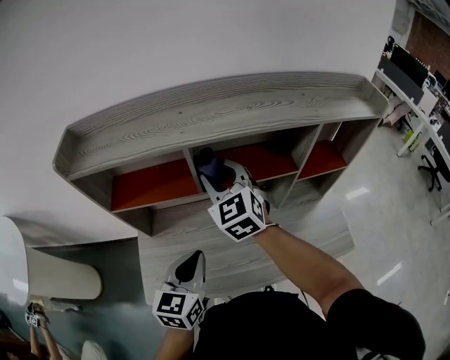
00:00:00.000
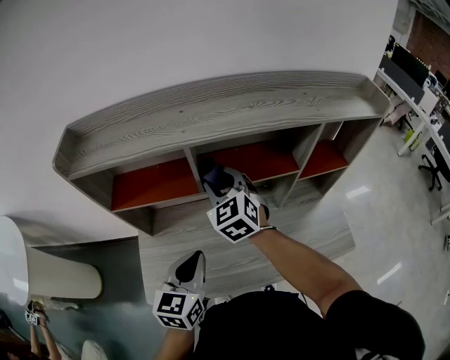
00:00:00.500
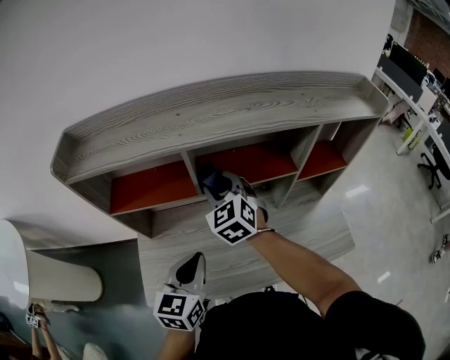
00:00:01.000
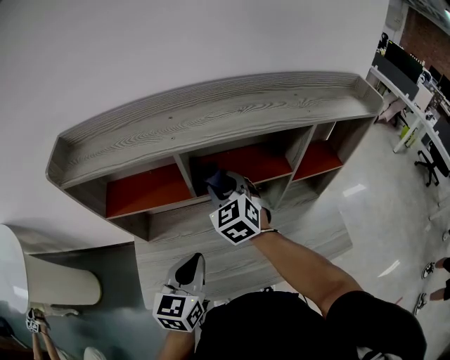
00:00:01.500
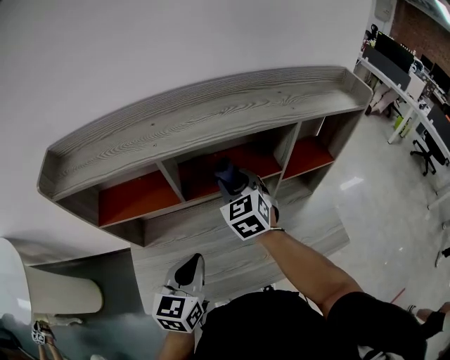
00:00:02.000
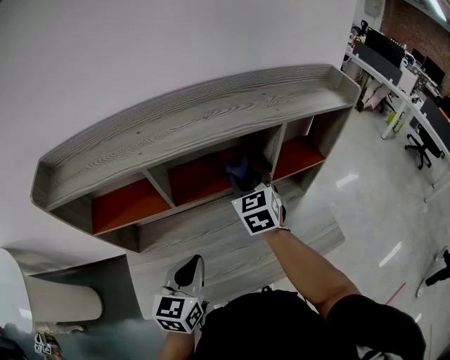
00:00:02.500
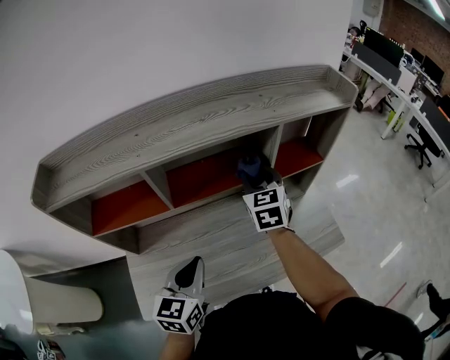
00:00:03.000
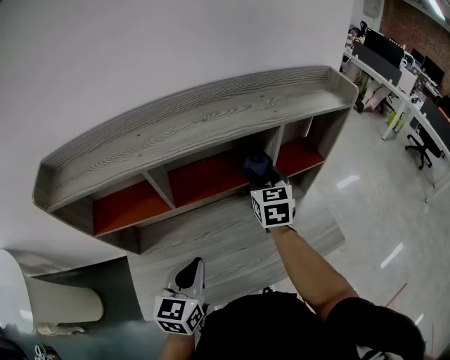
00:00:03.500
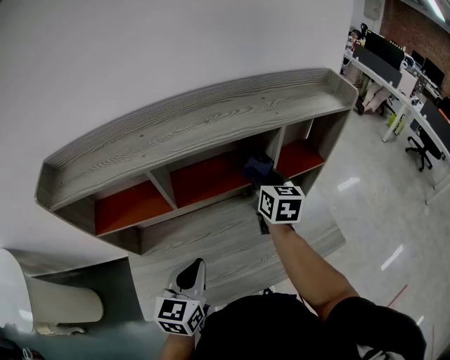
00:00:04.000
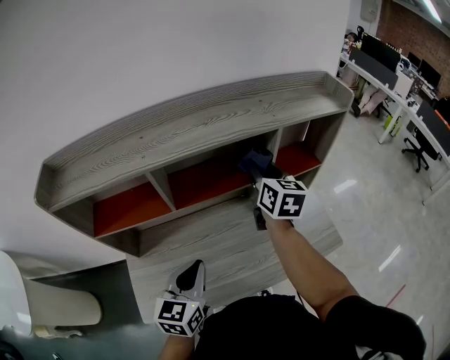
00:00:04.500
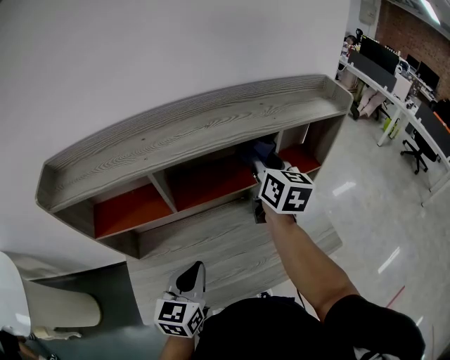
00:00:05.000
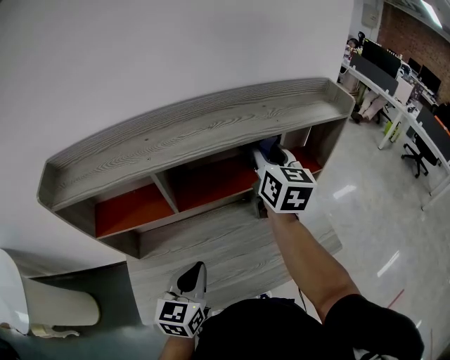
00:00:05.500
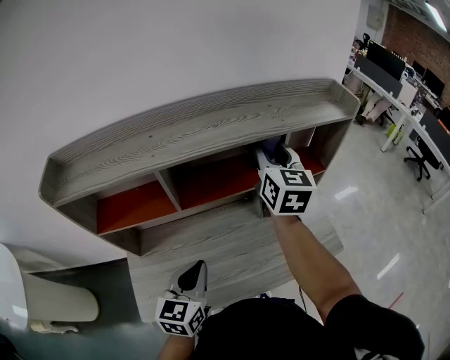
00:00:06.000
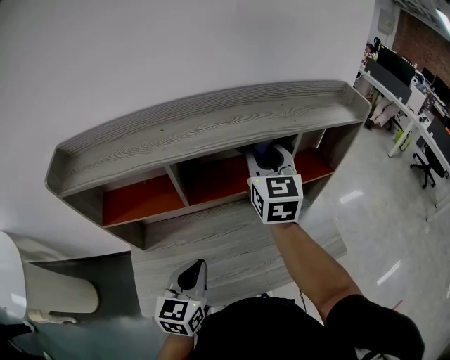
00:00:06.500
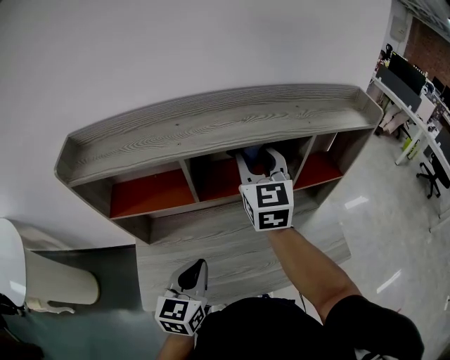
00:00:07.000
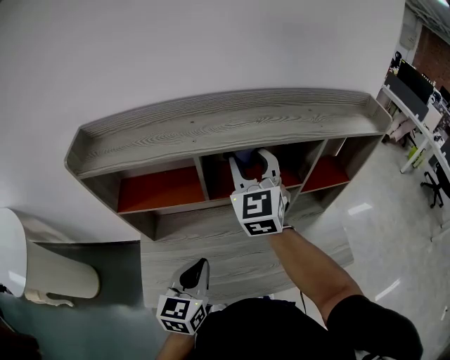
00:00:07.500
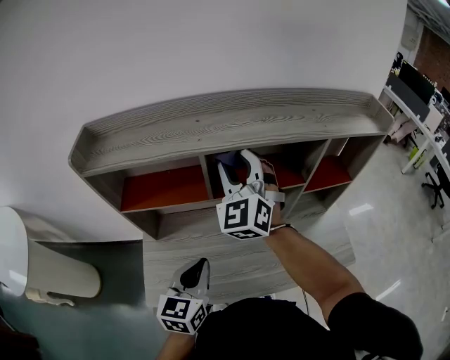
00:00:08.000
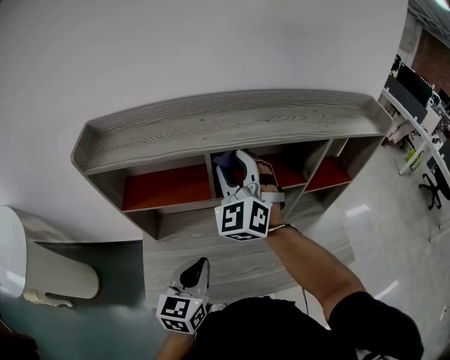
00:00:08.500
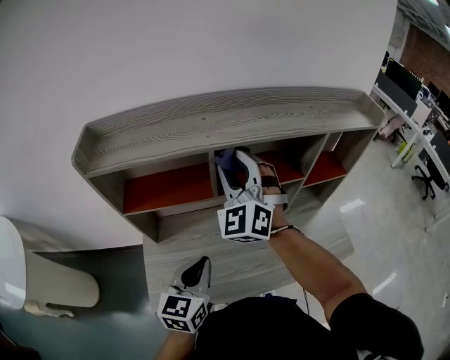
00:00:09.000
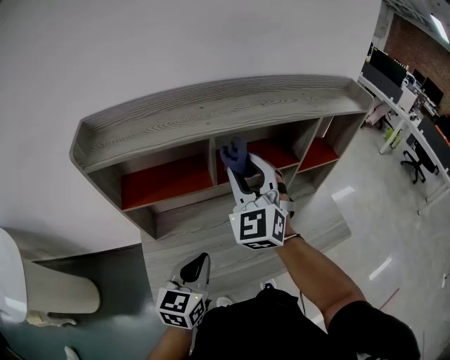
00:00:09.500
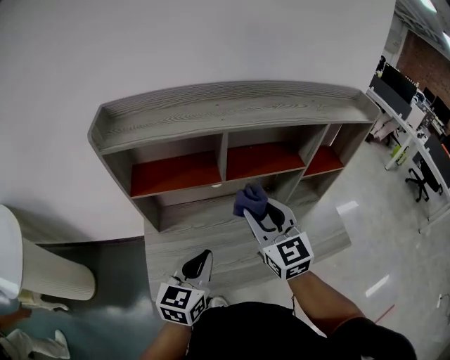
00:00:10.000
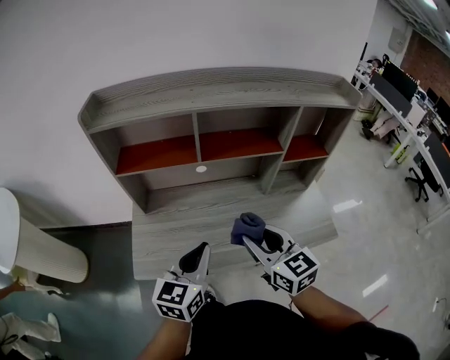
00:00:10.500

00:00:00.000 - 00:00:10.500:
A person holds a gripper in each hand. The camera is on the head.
00:00:00.000 - 00:00:02.000: The right gripper goes roughly 10 cm to the right and downward.
00:00:02.000 - 00:00:04.000: The right gripper heads to the right, covering roughly 15 cm, and rotates some 40 degrees.
00:00:04.000 - 00:00:06.500: The right gripper moves upward and to the left, about 15 cm, and changes its angle by some 20 degrees.
00:00:06.500 - 00:00:08.500: The left gripper moves to the left, approximately 5 cm, while the right gripper shifts about 15 cm to the left, and twists some 40 degrees counterclockwise, seen from behind.
00:00:08.500 - 00:00:10.500: The left gripper is displaced backward and to the right by approximately 10 cm. The right gripper moves backward, downward and to the right, some 30 cm, and twists about 50 degrees clockwise, seen from behind.

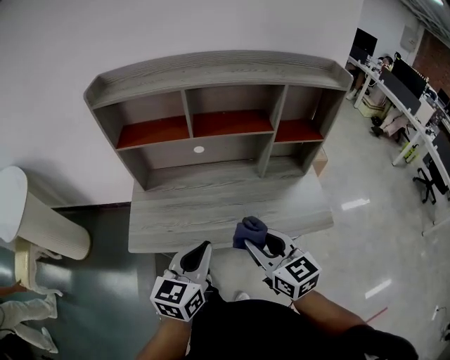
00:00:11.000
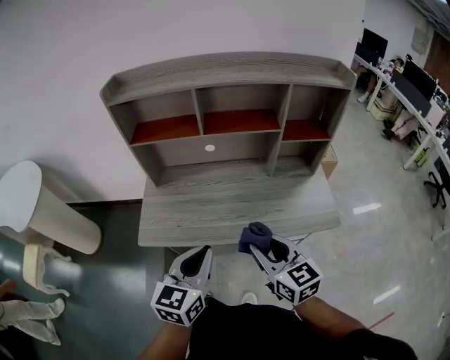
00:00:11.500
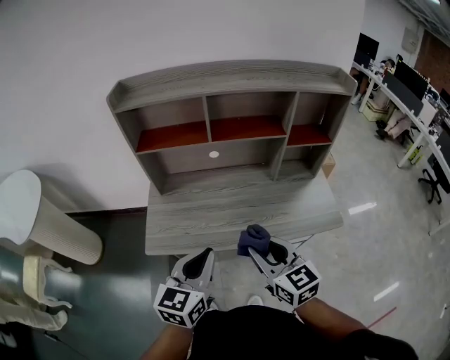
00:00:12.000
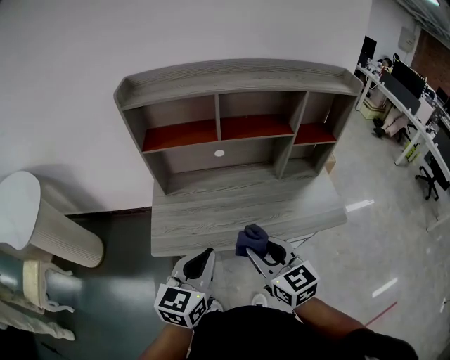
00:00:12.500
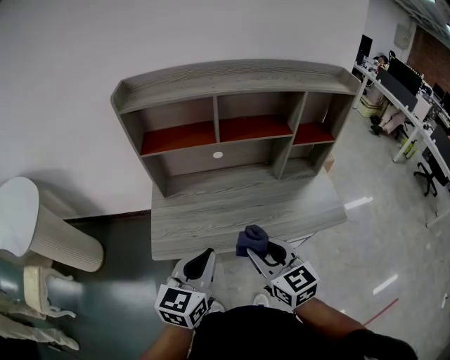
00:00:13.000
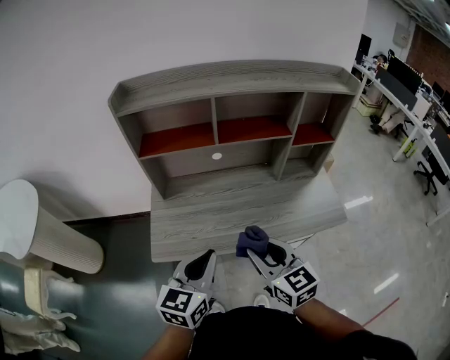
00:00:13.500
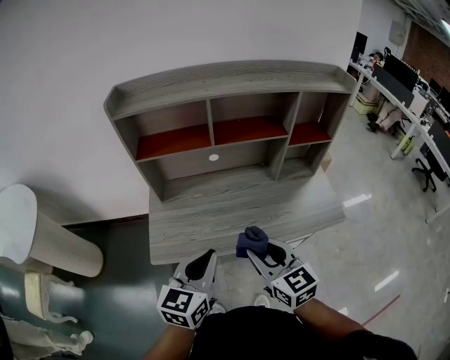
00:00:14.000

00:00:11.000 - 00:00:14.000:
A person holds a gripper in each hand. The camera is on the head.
00:00:11.000 - 00:00:12.500: The two grippers go about 10 cm to the left.
00:00:12.500 - 00:00:14.000: The grippers make only small movements.

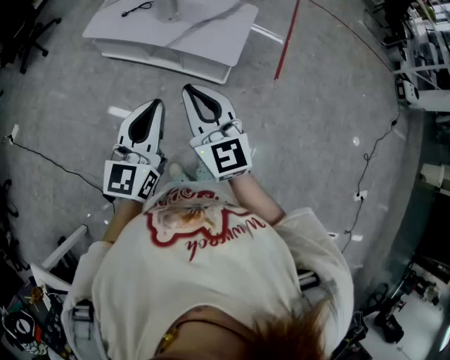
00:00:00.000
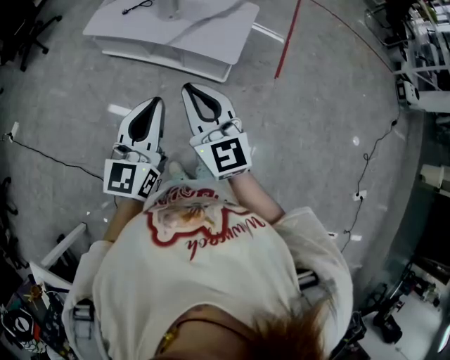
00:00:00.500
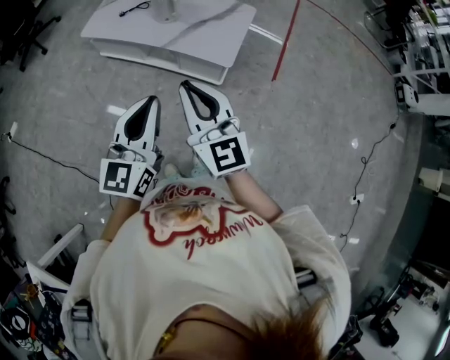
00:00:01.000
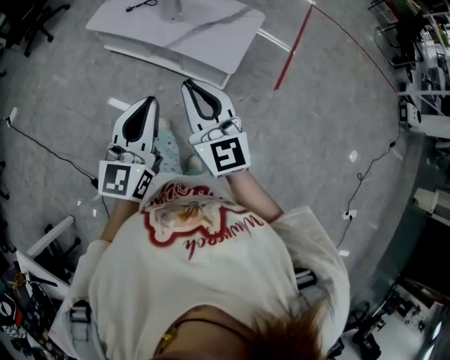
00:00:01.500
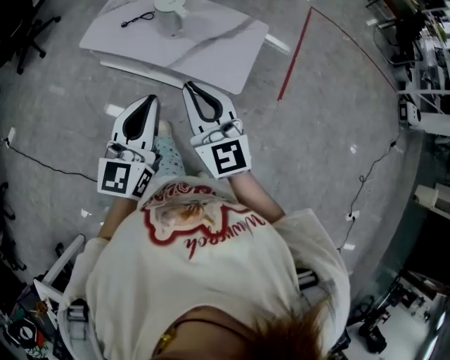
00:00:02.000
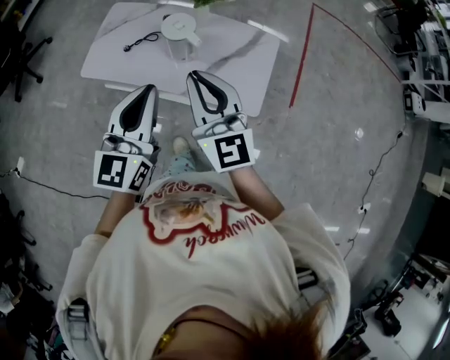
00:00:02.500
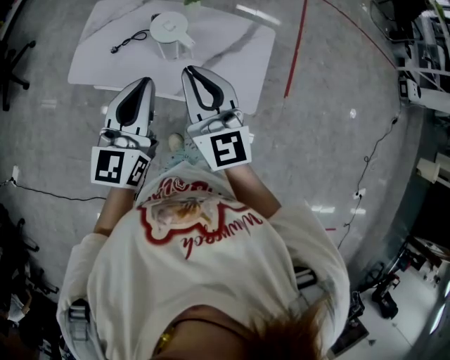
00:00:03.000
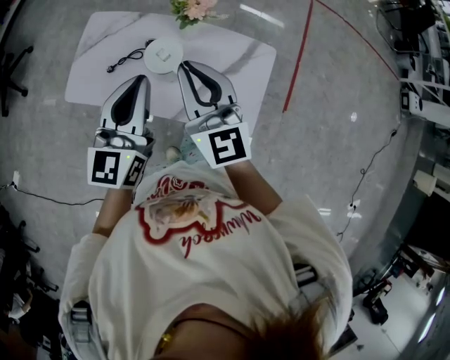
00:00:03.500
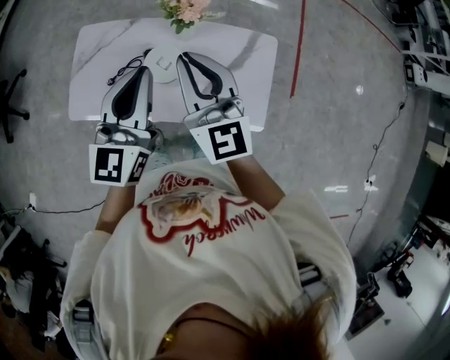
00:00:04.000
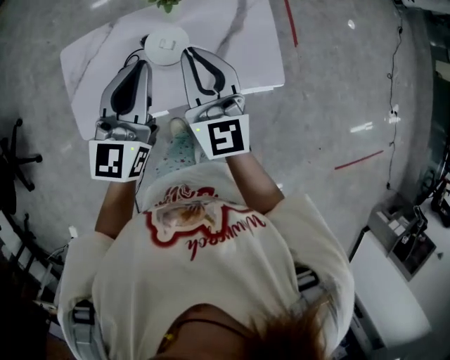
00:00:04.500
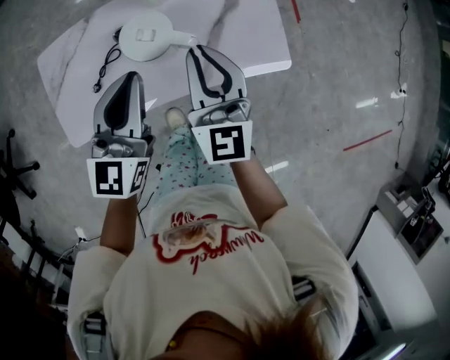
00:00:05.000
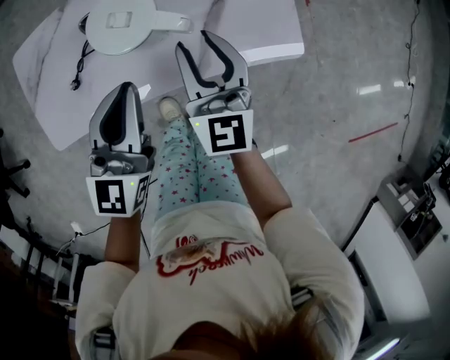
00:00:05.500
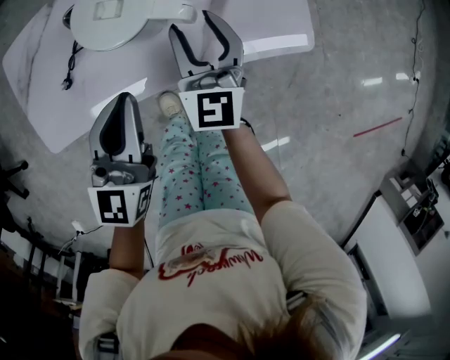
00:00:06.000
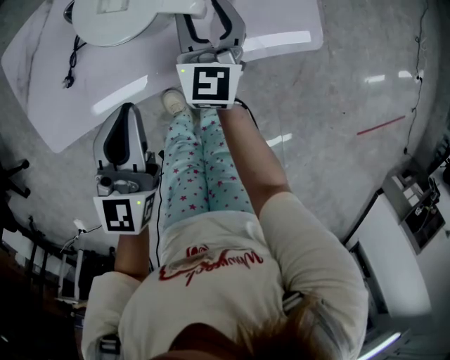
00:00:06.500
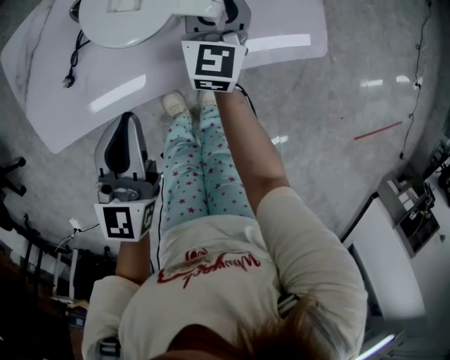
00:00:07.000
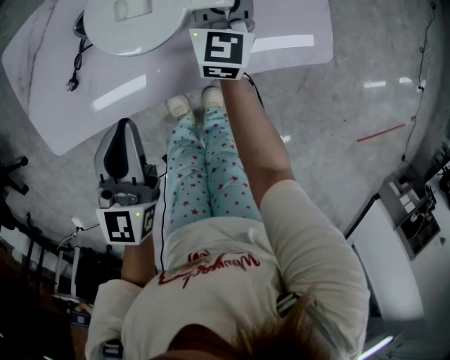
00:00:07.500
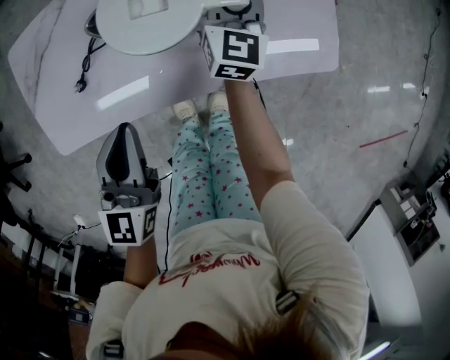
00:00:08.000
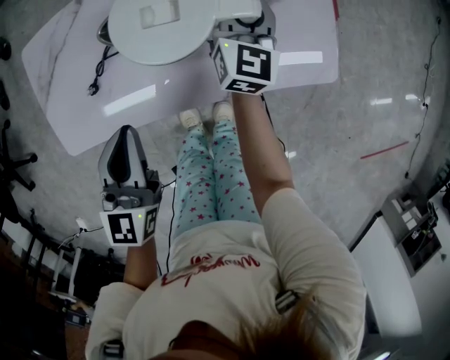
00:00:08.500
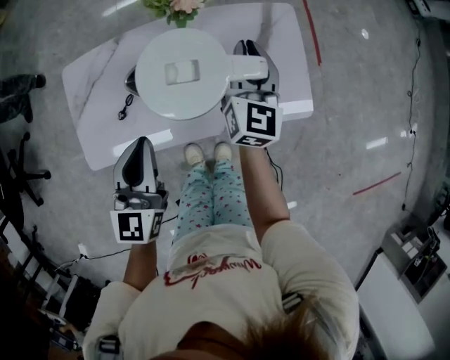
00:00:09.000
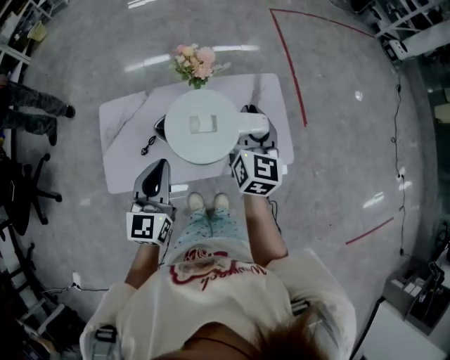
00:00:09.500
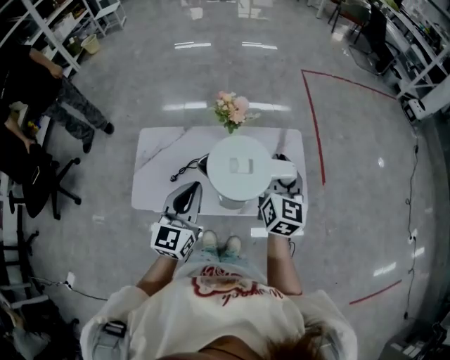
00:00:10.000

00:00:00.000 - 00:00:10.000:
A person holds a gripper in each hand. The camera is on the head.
00:00:00.000 - 00:00:02.000: Both grippers travel together forward, approximately 20 cm.
00:00:02.000 - 00:00:04.000: The two grippers travel together, forward, roughly 50 cm.
00:00:04.000 - 00:00:06.000: The two grippers go some 30 cm downward. The right gripper changes its angle by approximately 40 degrees, and opens its fingers; the left gripper rotates roughly 20 degrees.
00:00:06.000 - 00:00:08.000: The left gripper travels to the left by some 5 cm. The right gripper heads forward and downward, covering approximately 15 cm, and closes up.
00:00:08.000 - 00:00:10.000: Both grippers travel together upward, about 35 cm.

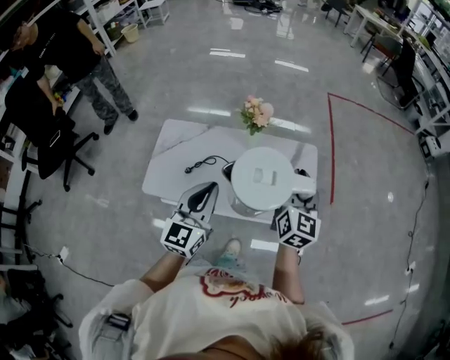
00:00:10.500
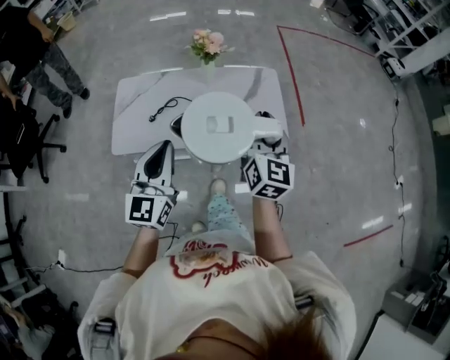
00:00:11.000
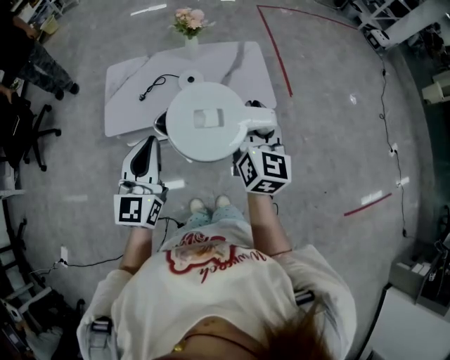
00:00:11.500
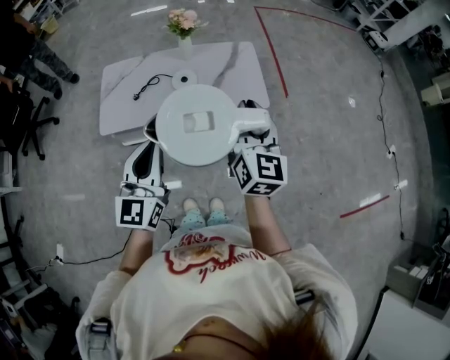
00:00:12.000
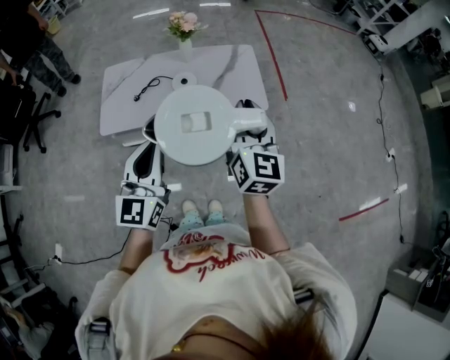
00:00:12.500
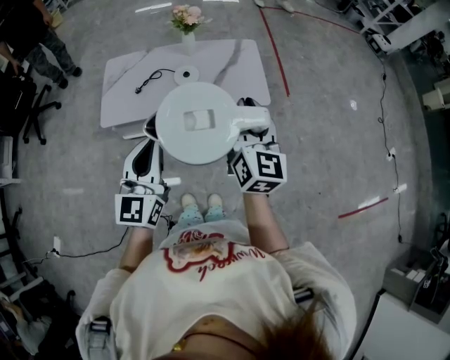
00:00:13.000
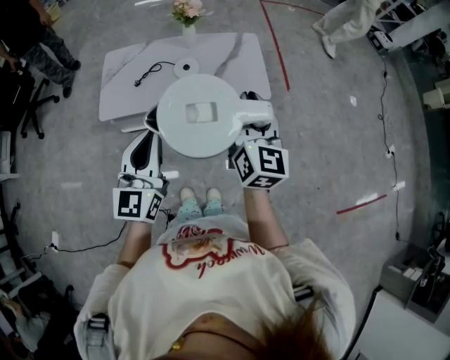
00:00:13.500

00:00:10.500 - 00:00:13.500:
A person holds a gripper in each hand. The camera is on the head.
00:00:10.500 - 00:00:12.000: The grippers both shift backward by some 30 cm.
00:00:12.000 - 00:00:13.500: The grippers move only a little.
